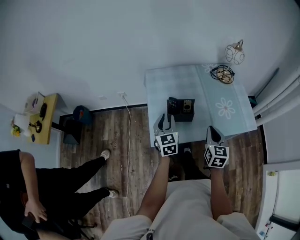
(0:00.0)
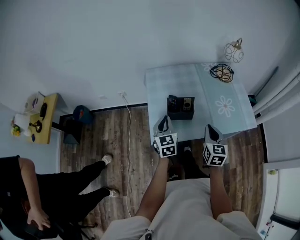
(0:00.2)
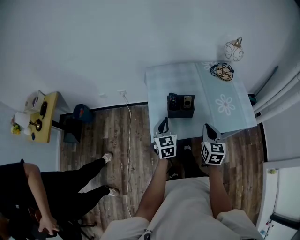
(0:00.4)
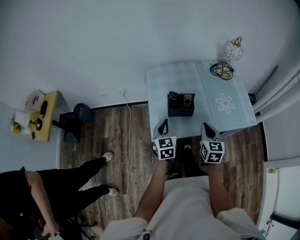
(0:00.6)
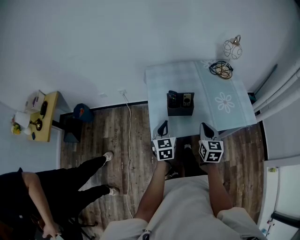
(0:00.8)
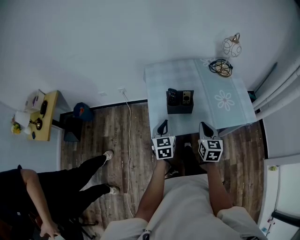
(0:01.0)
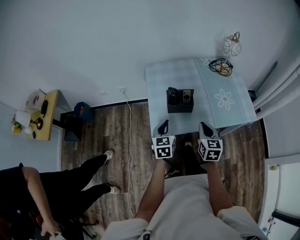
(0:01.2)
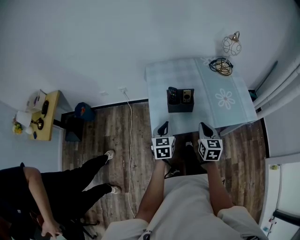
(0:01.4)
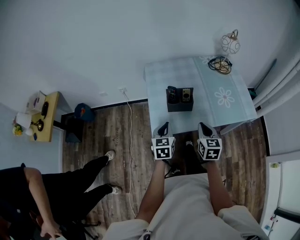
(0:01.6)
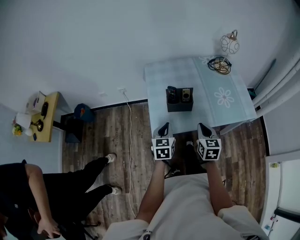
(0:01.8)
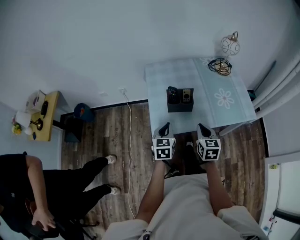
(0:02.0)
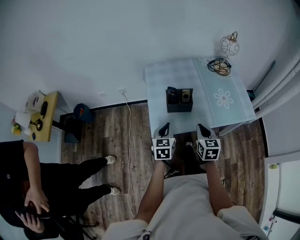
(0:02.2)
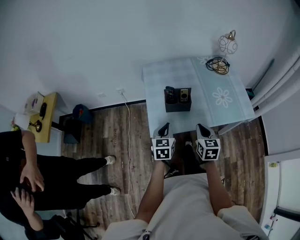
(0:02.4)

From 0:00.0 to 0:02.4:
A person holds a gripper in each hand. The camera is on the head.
From 0:00.0 to 0:01.2: The right gripper shifts by roughly 5 cm, while the left gripper shifts approximately 10 cm backward, and closes its fingers.
From 0:01.2 to 0:02.4: The grippers stay close to where they were, moving slightly.

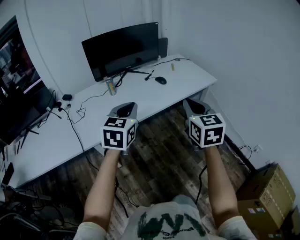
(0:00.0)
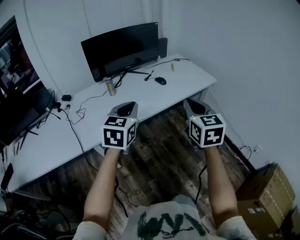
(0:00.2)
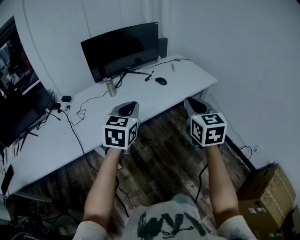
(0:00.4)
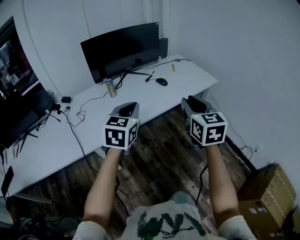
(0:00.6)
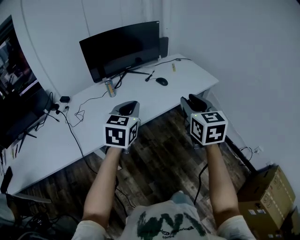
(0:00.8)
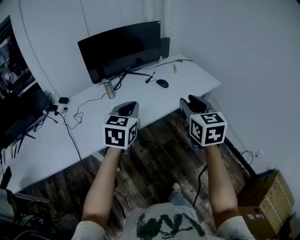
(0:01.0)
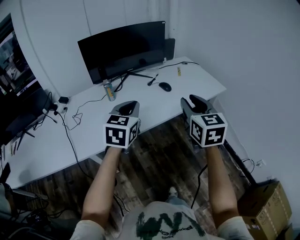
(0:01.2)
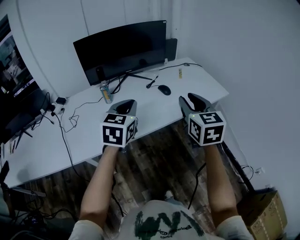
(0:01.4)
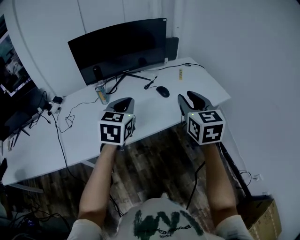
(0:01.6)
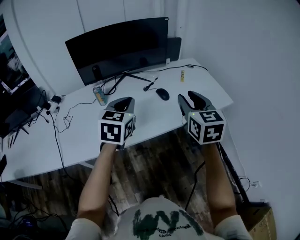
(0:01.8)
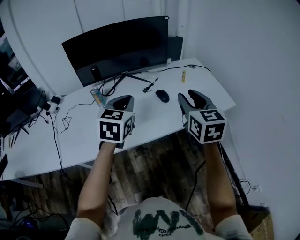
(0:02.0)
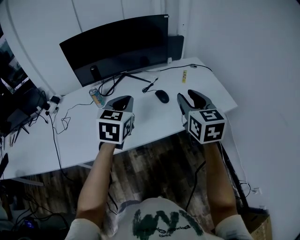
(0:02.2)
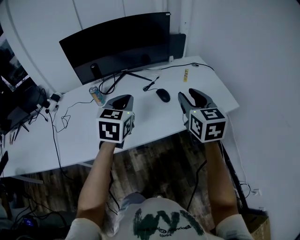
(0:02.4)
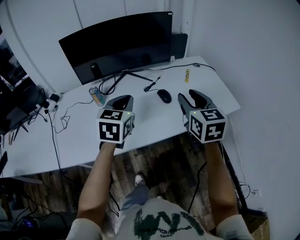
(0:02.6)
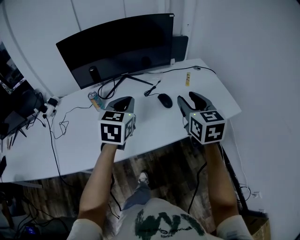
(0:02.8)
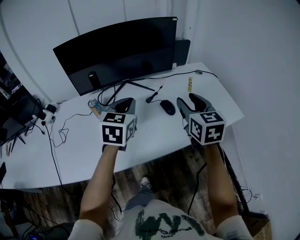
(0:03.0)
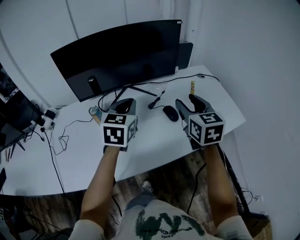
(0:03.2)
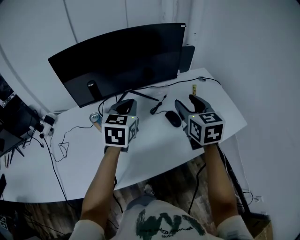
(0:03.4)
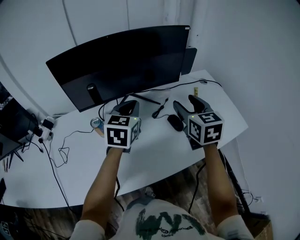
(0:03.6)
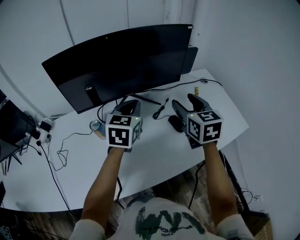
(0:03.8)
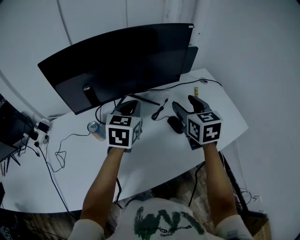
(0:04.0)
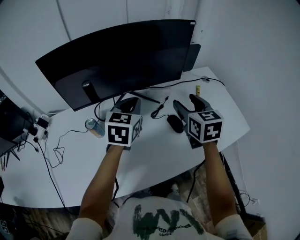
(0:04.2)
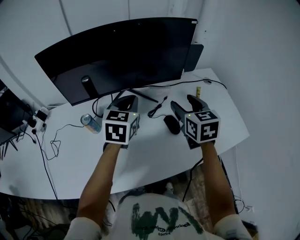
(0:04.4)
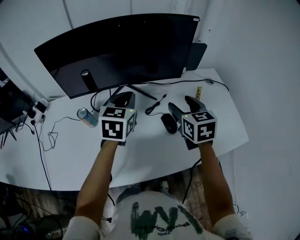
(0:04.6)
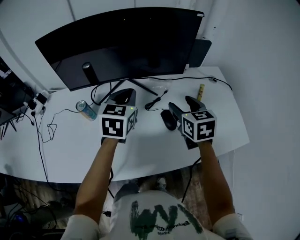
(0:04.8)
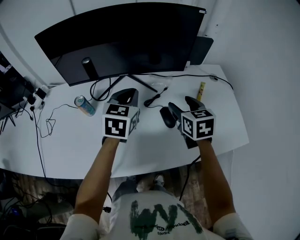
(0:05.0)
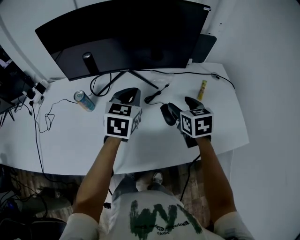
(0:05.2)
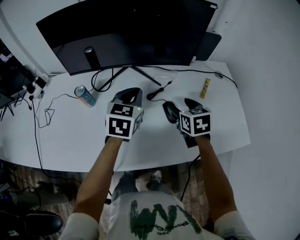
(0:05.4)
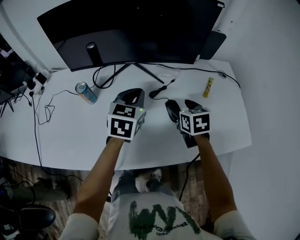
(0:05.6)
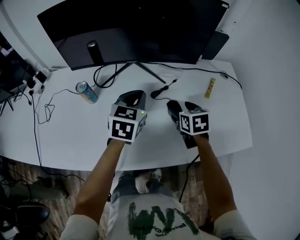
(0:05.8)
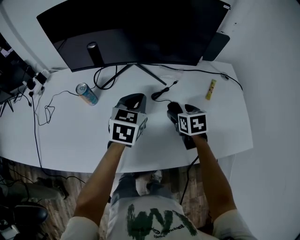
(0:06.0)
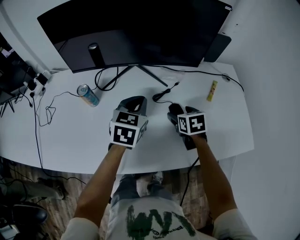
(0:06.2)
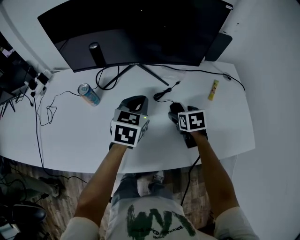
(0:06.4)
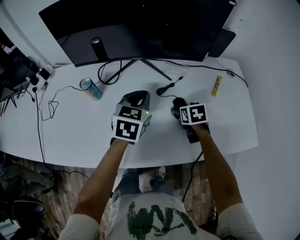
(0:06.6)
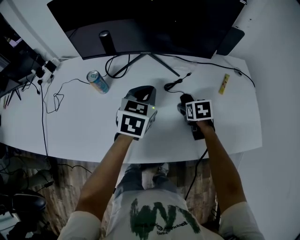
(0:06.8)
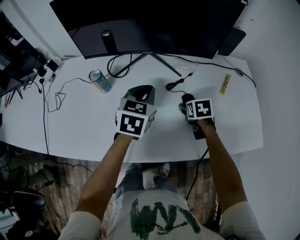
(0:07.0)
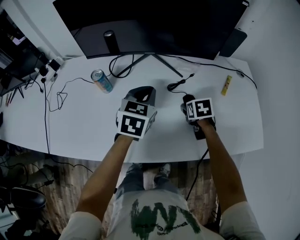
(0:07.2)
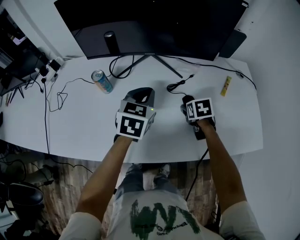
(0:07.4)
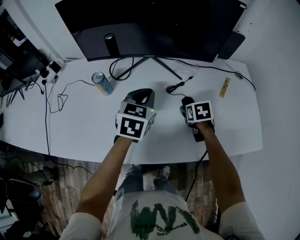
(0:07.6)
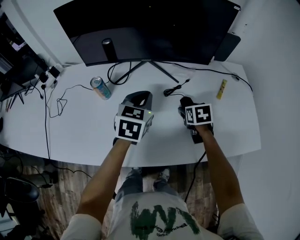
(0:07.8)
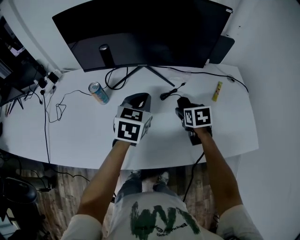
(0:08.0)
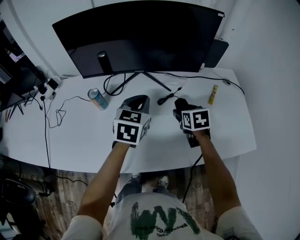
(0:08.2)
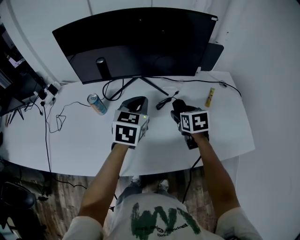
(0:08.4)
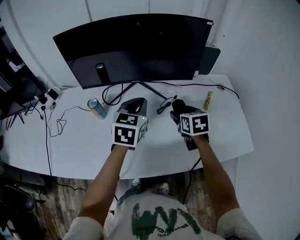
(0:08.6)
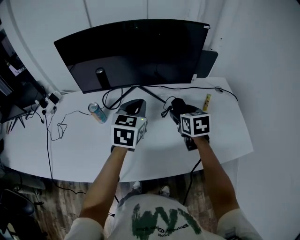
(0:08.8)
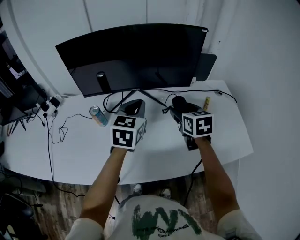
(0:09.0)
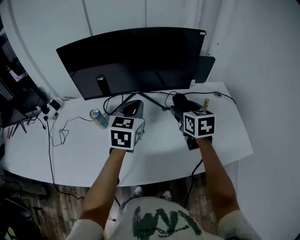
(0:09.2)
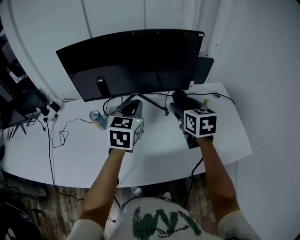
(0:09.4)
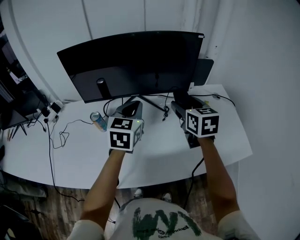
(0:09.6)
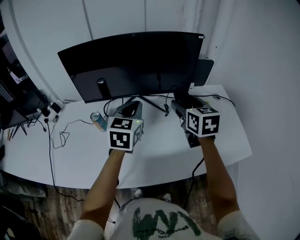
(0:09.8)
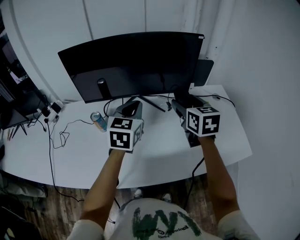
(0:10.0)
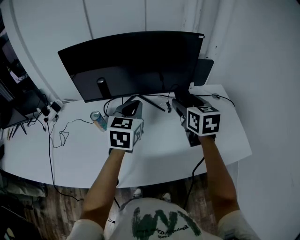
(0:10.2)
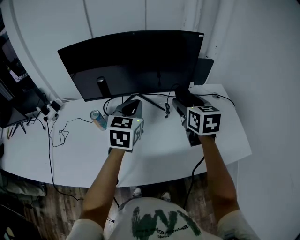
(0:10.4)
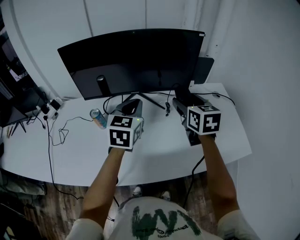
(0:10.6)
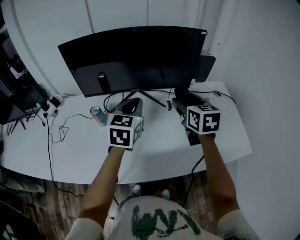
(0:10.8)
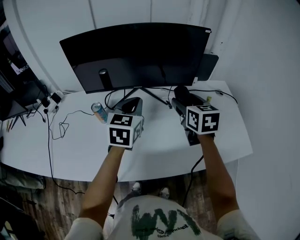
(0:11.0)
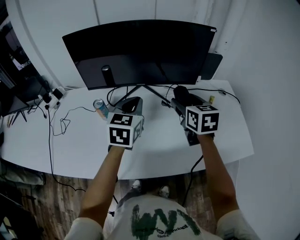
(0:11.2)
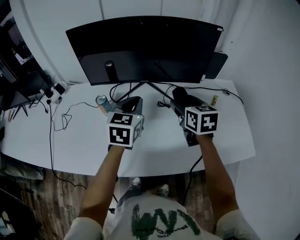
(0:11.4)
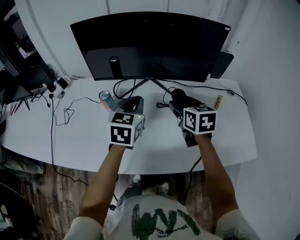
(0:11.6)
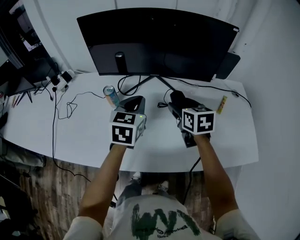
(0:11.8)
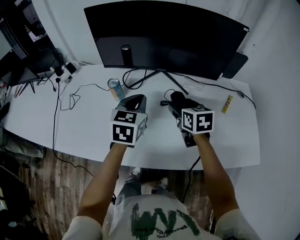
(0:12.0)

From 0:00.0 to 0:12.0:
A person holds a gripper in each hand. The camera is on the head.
From 0:00.0 to 0:01.6: Both grippers move forward, some 25 cm.
From 0:01.6 to 0:03.0: The grippers both shift forward by some 15 cm.
From 0:03.0 to 0:04.4: Both grippers travel together forward, about 15 cm.
From 0:04.4 to 0:06.0: The right gripper heads downward, covering approximately 20 cm, and turns by roughly 30 degrees. The left gripper shifts some 10 cm downward.
From 0:06.0 to 0:07.6: The grippers make only small movements.
From 0:07.6 to 0:09.0: The right gripper heads upward, covering approximately 20 cm, and swivels roughly 30 degrees. The left gripper moves upward, approximately 10 cm.
From 0:09.0 to 0:10.4: The right gripper goes about 10 cm upward.
From 0:10.4 to 0:12.0: The left gripper is displaced downward and to the left by roughly 10 cm; the right gripper shifts about 15 cm downward and to the left, and rotates roughly 20 degrees.

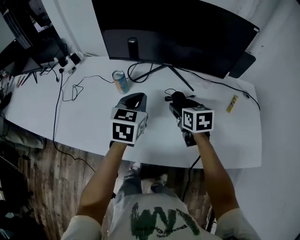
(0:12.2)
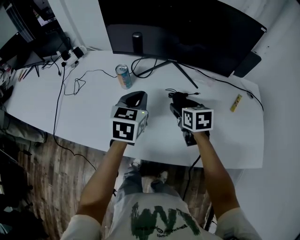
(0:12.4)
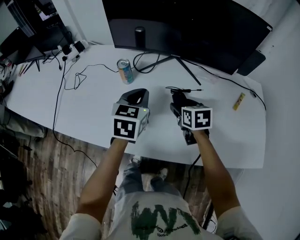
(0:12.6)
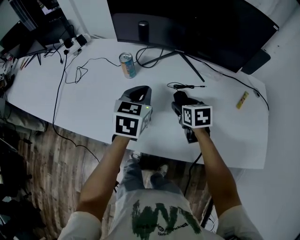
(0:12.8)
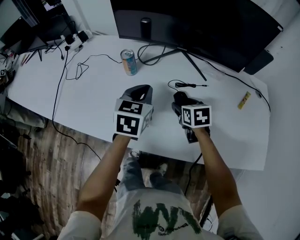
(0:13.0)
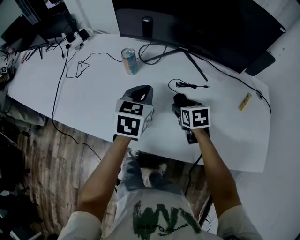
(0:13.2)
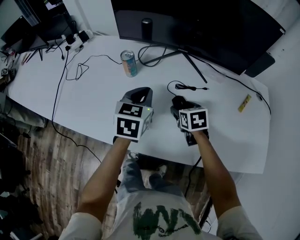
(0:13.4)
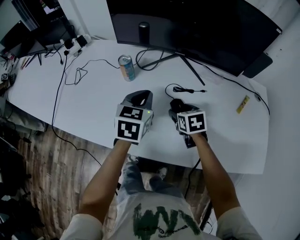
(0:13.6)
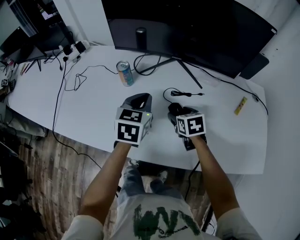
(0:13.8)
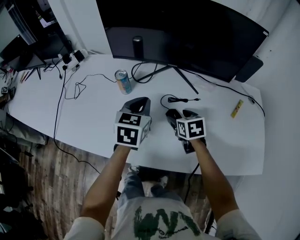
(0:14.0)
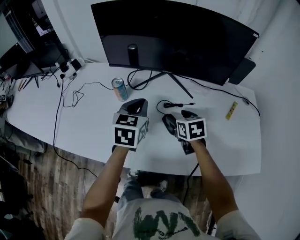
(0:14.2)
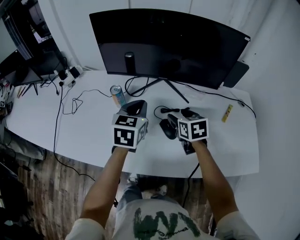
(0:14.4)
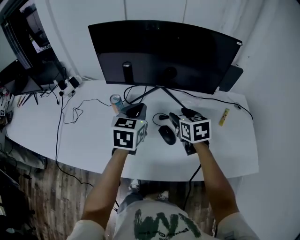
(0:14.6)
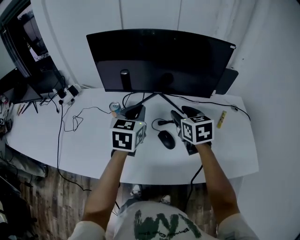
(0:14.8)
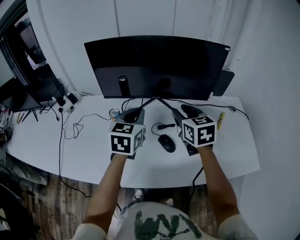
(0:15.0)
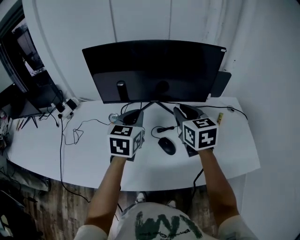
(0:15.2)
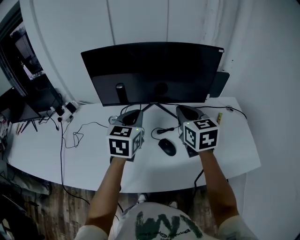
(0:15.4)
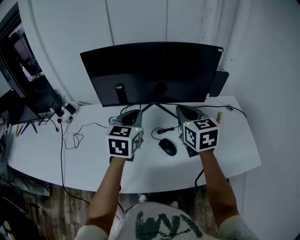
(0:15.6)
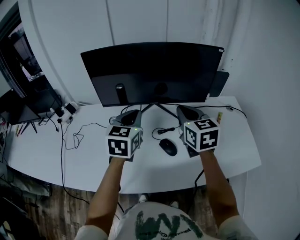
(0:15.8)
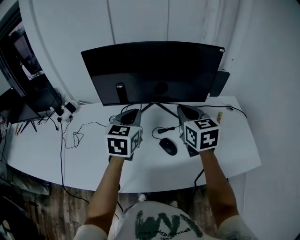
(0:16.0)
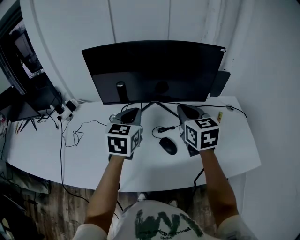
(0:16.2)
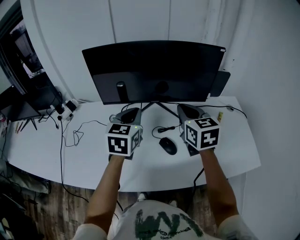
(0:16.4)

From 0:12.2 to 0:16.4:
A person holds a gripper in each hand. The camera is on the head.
From 0:12.2 to 0:13.6: The right gripper shifts some 10 cm downward; the left gripper heads downward, covering about 5 cm.
From 0:13.6 to 0:15.0: The left gripper shifts approximately 15 cm upward; the right gripper goes approximately 25 cm upward, rotates roughly 30 degrees, and closes.
From 0:15.0 to 0:16.4: The right gripper closes.

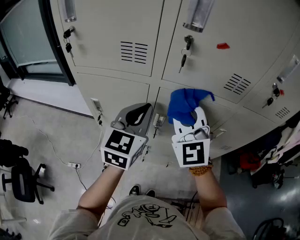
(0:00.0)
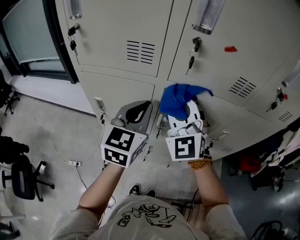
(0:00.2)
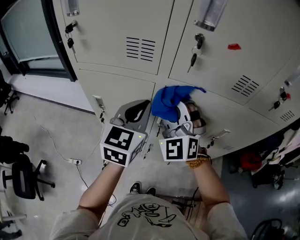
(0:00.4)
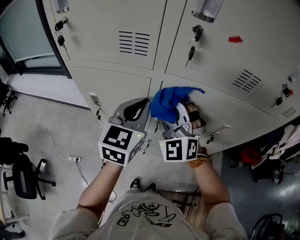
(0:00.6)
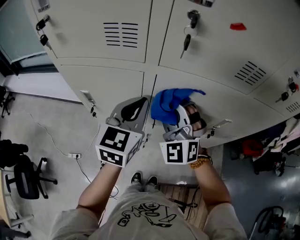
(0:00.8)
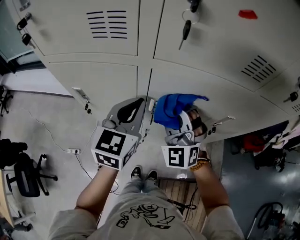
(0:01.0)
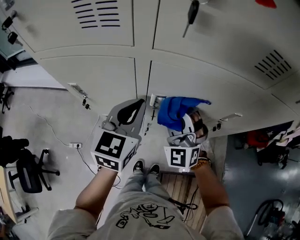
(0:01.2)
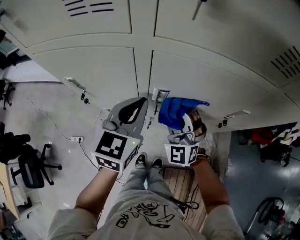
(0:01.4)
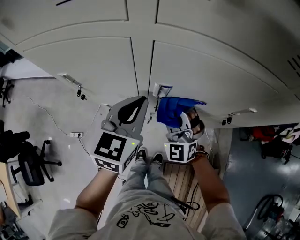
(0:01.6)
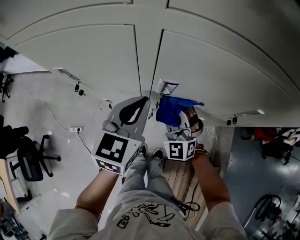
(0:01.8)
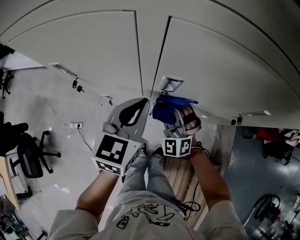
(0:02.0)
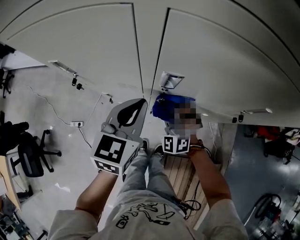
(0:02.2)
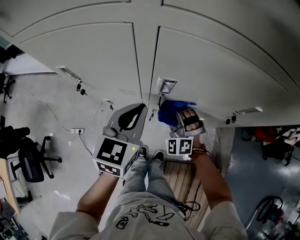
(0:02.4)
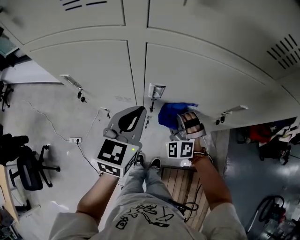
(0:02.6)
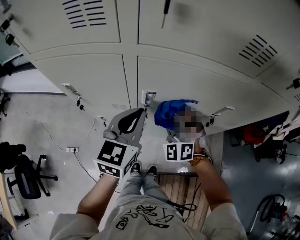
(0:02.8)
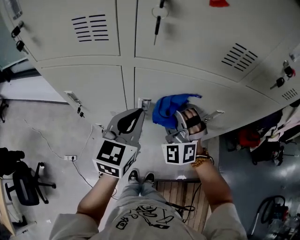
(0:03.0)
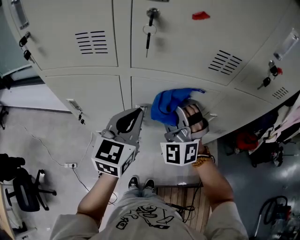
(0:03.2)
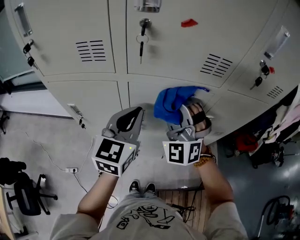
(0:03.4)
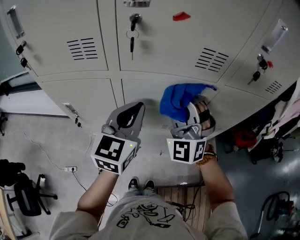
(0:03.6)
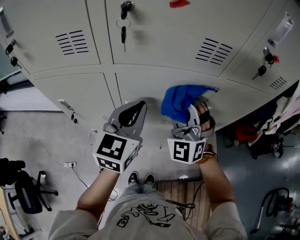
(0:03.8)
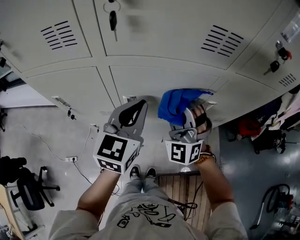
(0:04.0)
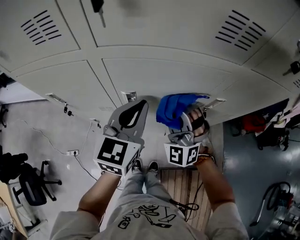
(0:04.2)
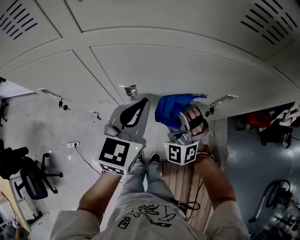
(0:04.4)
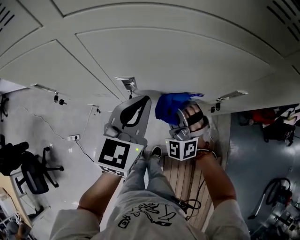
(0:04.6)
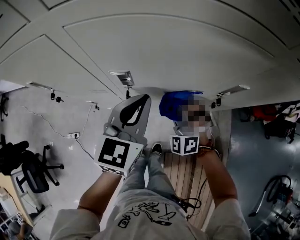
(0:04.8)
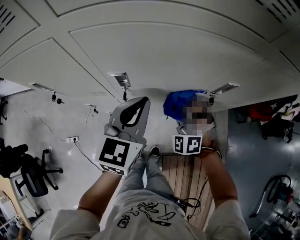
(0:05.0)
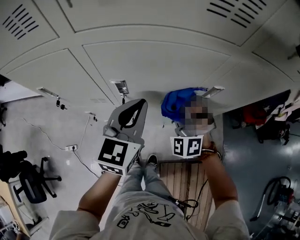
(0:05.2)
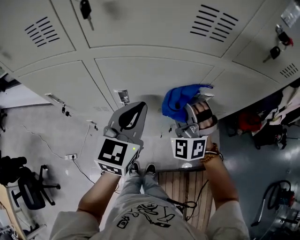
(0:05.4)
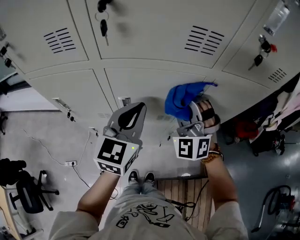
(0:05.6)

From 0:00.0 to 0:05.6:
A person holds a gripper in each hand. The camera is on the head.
From 0:00.0 to 0:01.4: The left gripper goes some 15 cm downward. Meanwhile the right gripper heads downward, covering some 25 cm.
From 0:01.4 to 0:02.8: The left gripper travels downward and back again, approximately 10 cm each way. Meanwhile the right gripper moves about 15 cm downward and comes back.
From 0:02.8 to 0:04.2: The grippers both shift to the right by about 5 cm. The right gripper goes upward and returns, some 20 cm each way; the left gripper moves roughly 10 cm upward and comes back.
From 0:04.2 to 0:05.6: The left gripper shifts about 5 cm upward, while the right gripper moves upward, roughly 10 cm.
